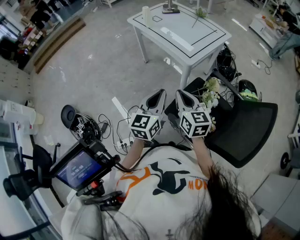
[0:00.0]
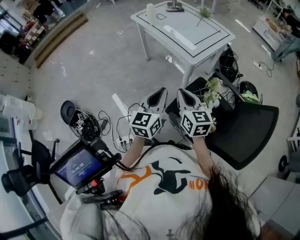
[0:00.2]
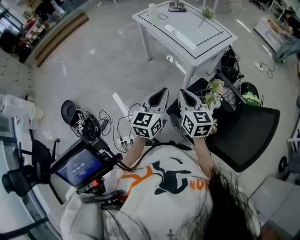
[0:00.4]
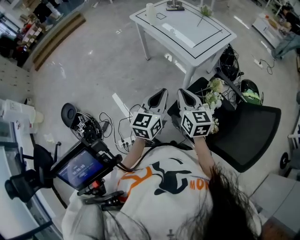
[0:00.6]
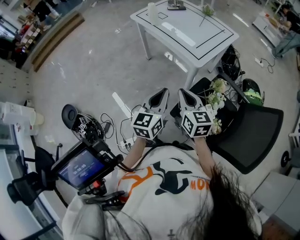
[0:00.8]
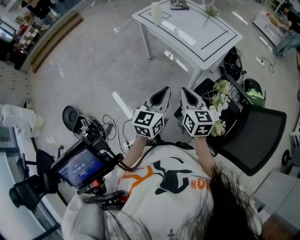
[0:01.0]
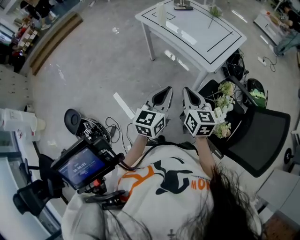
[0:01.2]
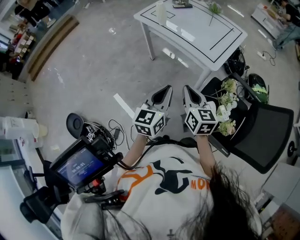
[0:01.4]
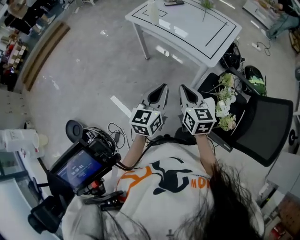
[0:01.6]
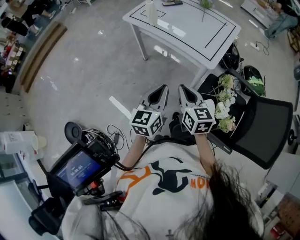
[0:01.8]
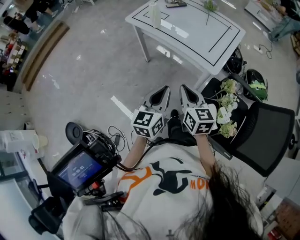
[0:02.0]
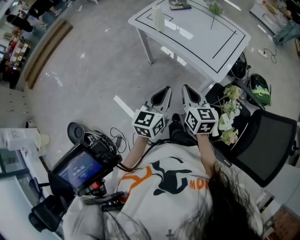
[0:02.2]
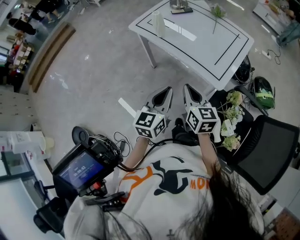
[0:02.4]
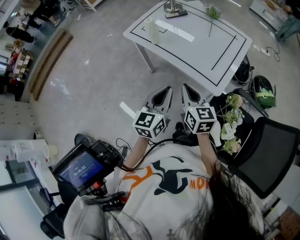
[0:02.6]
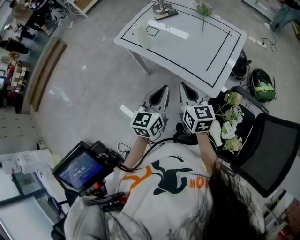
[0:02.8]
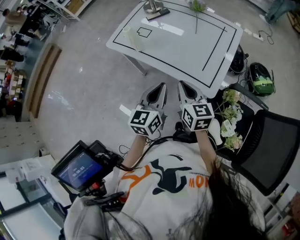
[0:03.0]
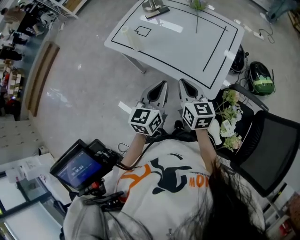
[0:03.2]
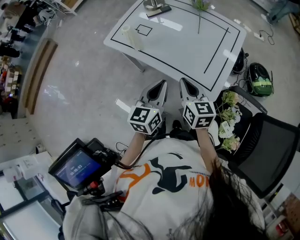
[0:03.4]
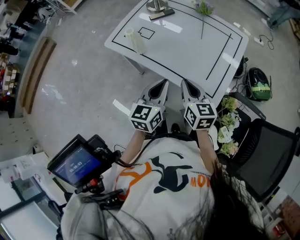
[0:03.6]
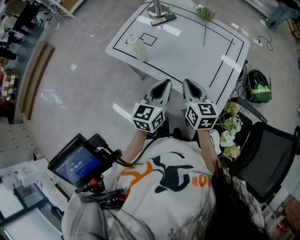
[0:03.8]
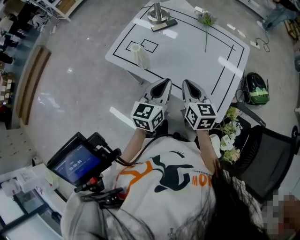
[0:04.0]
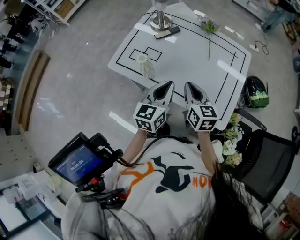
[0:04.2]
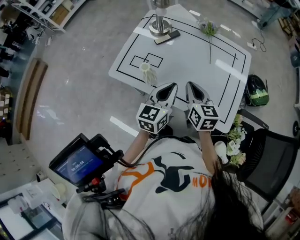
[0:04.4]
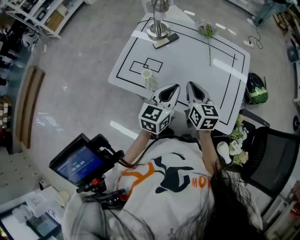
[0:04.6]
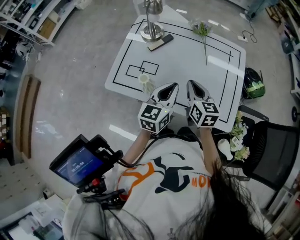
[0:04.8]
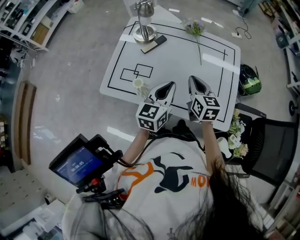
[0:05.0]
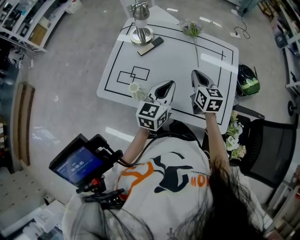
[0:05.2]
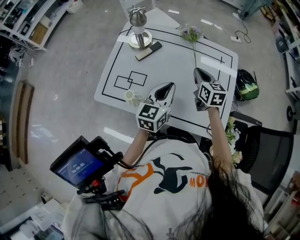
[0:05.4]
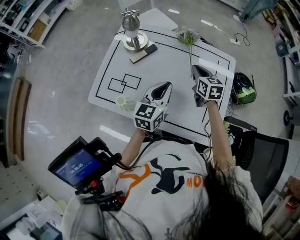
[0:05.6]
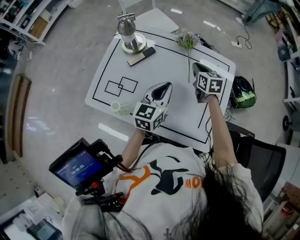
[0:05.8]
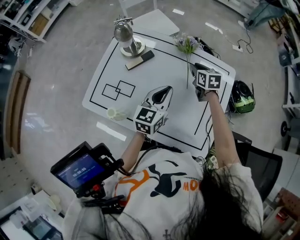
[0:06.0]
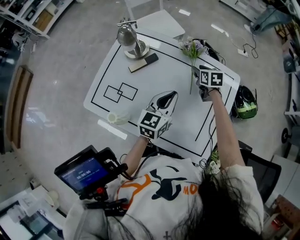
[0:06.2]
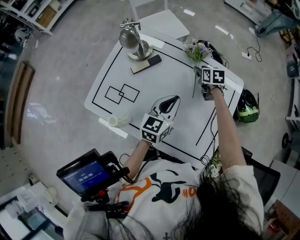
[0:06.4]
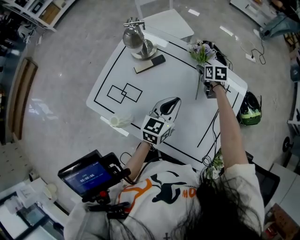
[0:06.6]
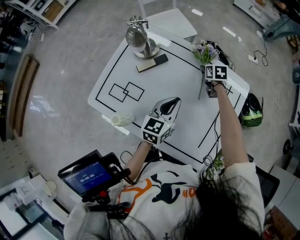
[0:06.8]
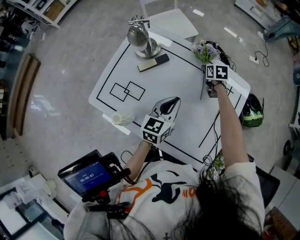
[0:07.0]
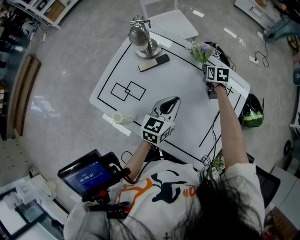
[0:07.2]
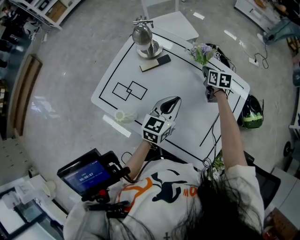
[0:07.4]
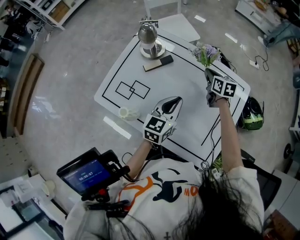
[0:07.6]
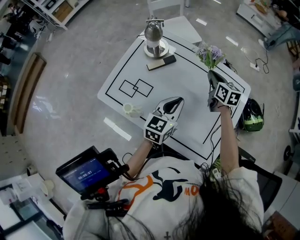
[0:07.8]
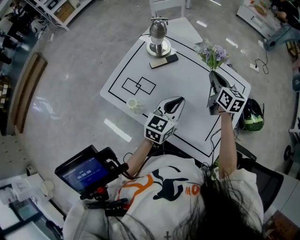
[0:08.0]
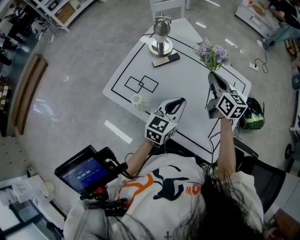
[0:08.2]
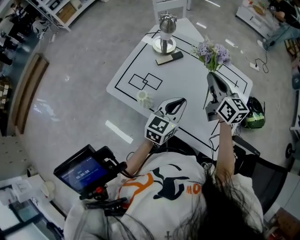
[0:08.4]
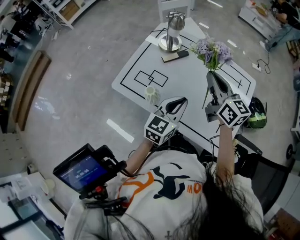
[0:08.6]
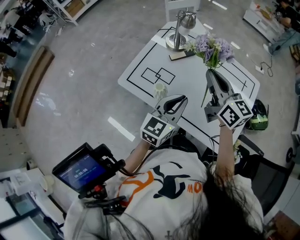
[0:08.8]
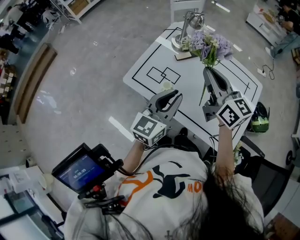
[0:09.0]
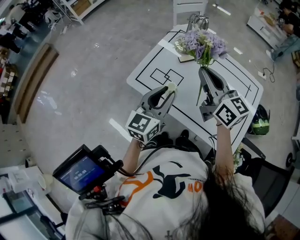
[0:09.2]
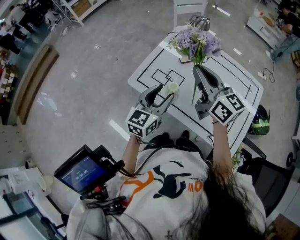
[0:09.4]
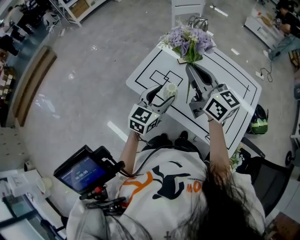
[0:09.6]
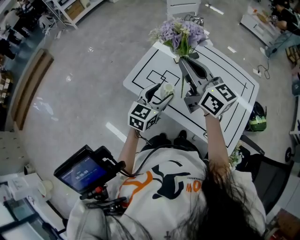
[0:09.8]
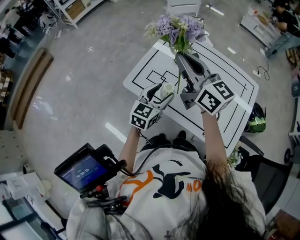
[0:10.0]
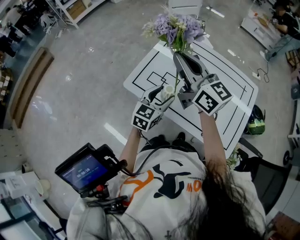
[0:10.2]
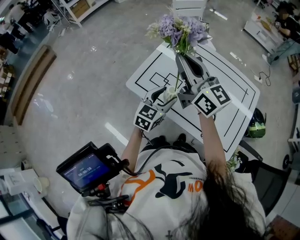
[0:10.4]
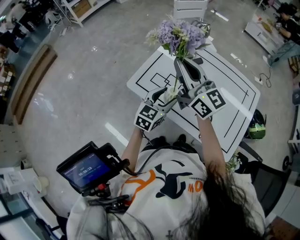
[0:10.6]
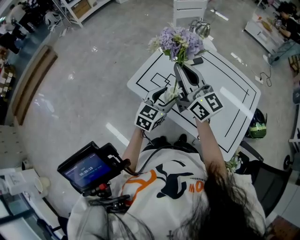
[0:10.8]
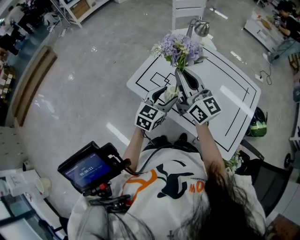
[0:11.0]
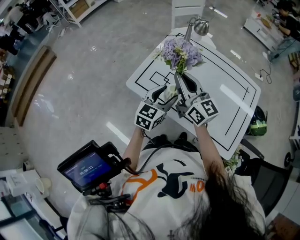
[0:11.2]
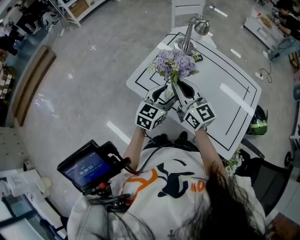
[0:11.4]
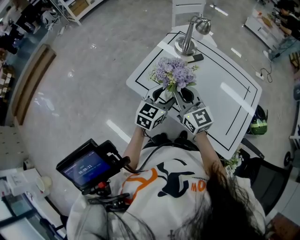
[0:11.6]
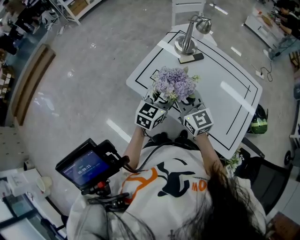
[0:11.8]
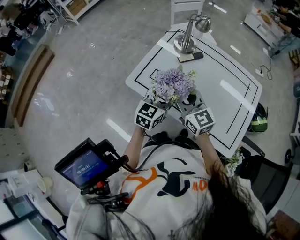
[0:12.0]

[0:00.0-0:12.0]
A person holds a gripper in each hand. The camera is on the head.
0:00.0 to 0:01.6: Both grippers travel together to the left and forward, about 20 cm.
0:01.6 to 0:03.0: Both grippers travel together forward, about 25 cm.
0:03.0 to 0:04.4: Both grippers move forward, approximately 20 cm.
0:04.4 to 0:06.0: The right gripper shifts roughly 30 cm forward, and opens, while the left gripper travels forward and to the right by roughly 20 cm.
0:06.0 to 0:07.6: The right gripper opens, then closes once more.
0:07.6 to 0:09.0: The left gripper travels to the left, backward and upward by about 20 cm, while the right gripper moves upward, backward and to the left, roughly 40 cm, and tilts its fingers approximately 40 degrees upward.
0:09.0 to 0:10.4: The left gripper is displaced downward by about 10 cm, and opens its fingers, while the right gripper is displaced to the left and upward by approximately 15 cm.
0:10.4 to 0:12.0: The right gripper heads downward and backward, covering roughly 15 cm, turns by some 30 degrees, and opens up.

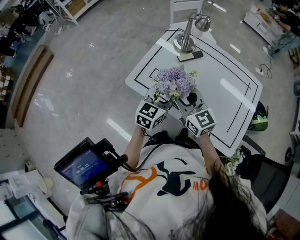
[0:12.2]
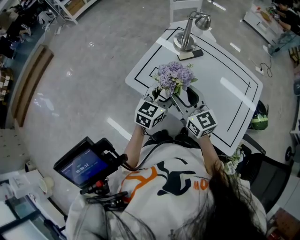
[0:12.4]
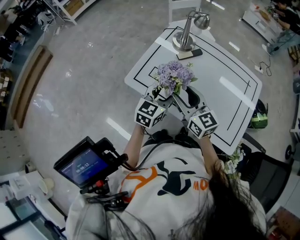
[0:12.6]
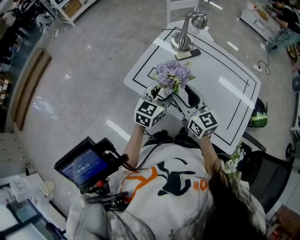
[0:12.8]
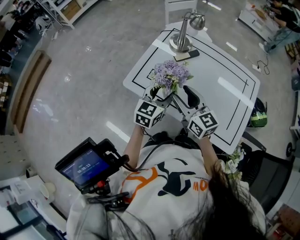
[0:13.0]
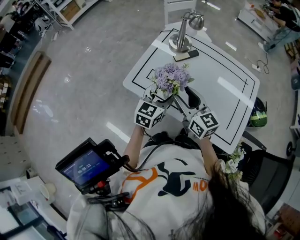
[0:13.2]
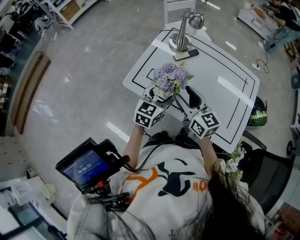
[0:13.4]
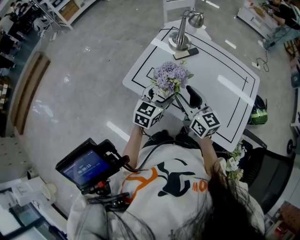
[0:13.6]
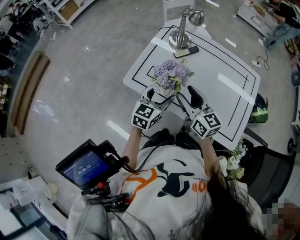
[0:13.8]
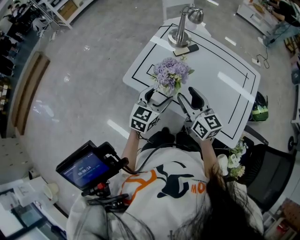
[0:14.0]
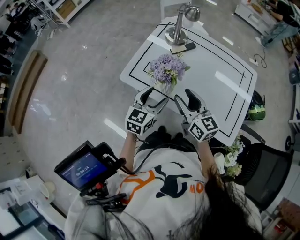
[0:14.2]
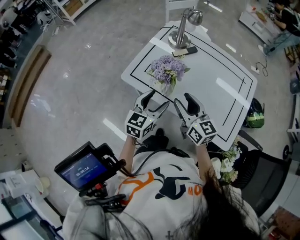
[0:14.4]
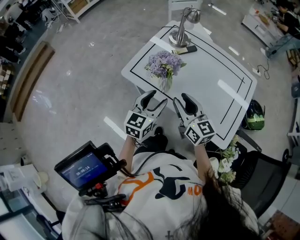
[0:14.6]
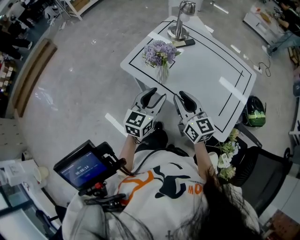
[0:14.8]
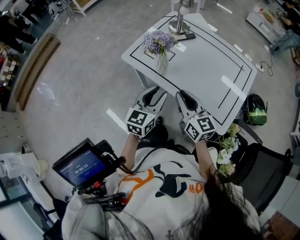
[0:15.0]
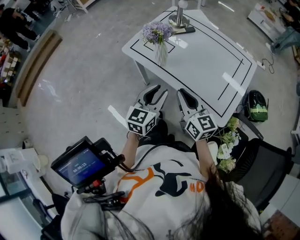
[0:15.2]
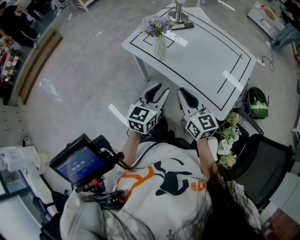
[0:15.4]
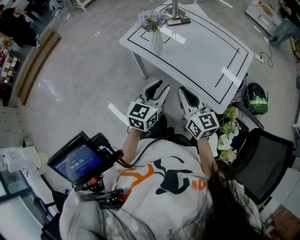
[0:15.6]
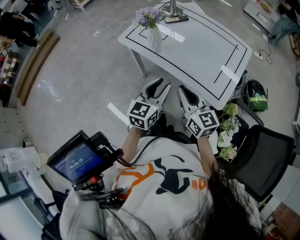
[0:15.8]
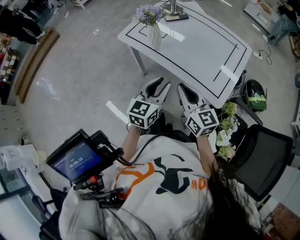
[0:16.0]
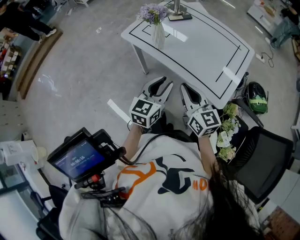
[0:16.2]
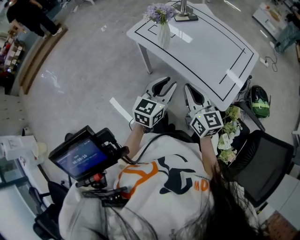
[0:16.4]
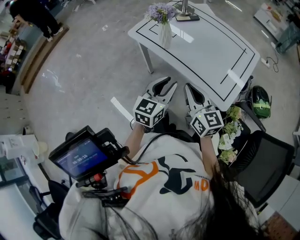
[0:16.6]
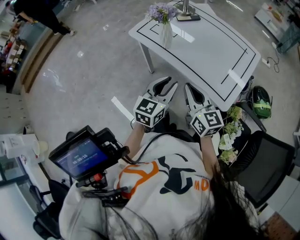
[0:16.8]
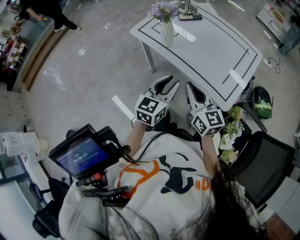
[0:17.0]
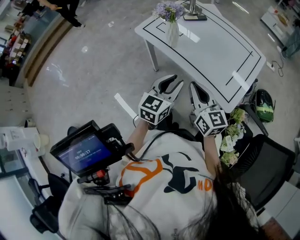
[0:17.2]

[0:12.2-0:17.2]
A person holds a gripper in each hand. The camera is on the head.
0:12.2 to 0:13.8: The right gripper shifts by some 5 cm.
0:13.8 to 0:15.6: The grippers both shift backward by some 25 cm. The right gripper closes up. Meanwhile the left gripper closes its fingers.
0:15.6 to 0:17.2: There are only small adjustments of the grippers.

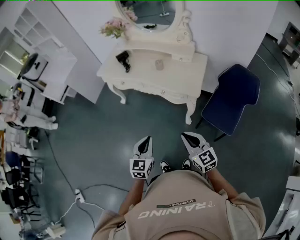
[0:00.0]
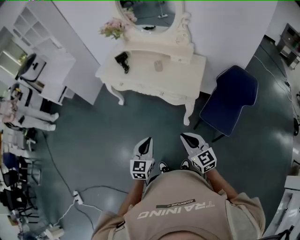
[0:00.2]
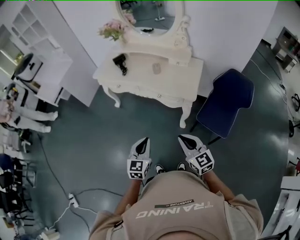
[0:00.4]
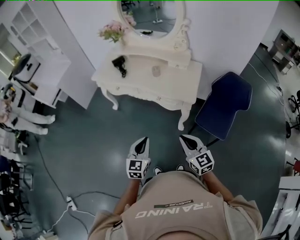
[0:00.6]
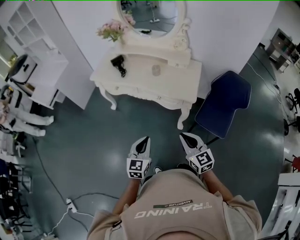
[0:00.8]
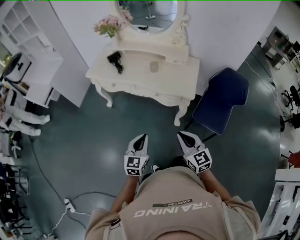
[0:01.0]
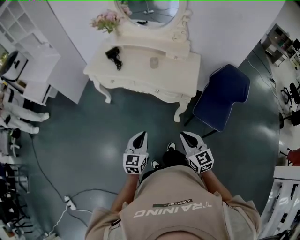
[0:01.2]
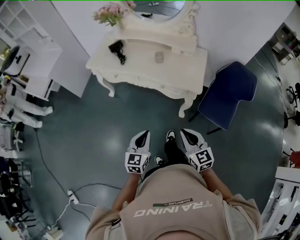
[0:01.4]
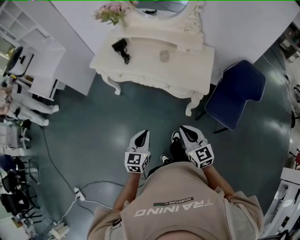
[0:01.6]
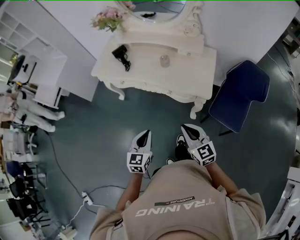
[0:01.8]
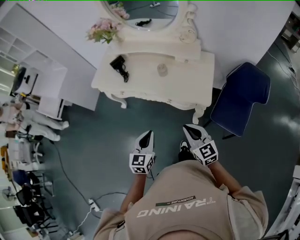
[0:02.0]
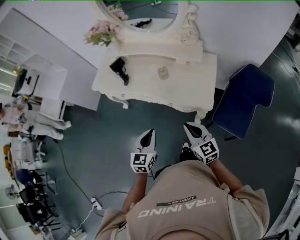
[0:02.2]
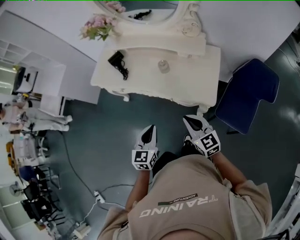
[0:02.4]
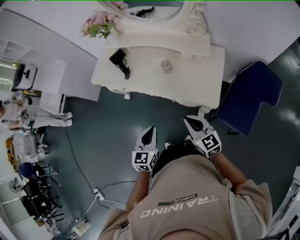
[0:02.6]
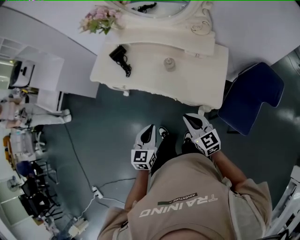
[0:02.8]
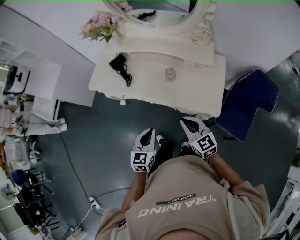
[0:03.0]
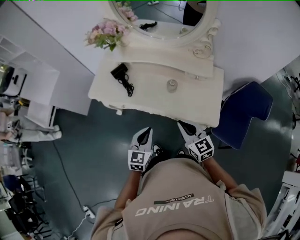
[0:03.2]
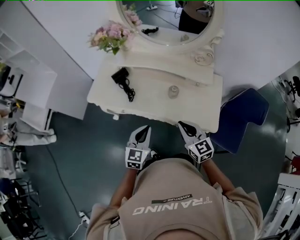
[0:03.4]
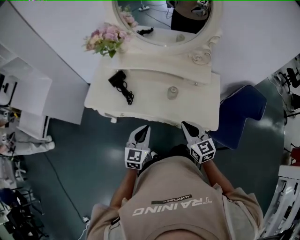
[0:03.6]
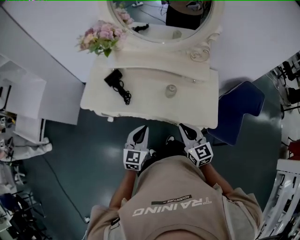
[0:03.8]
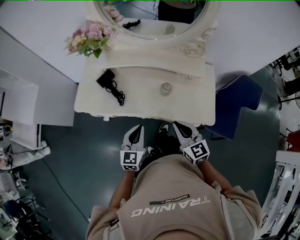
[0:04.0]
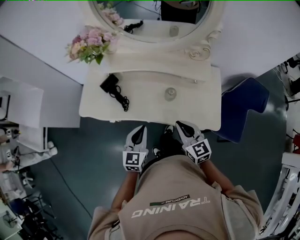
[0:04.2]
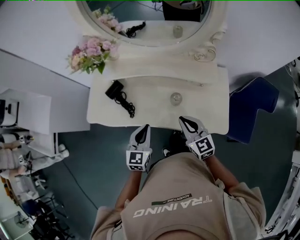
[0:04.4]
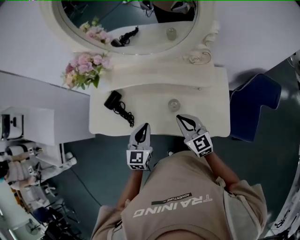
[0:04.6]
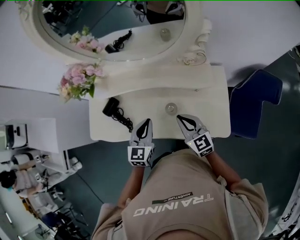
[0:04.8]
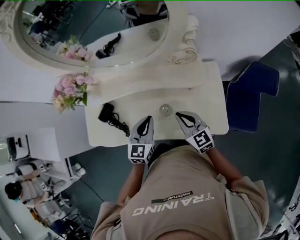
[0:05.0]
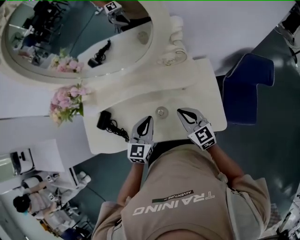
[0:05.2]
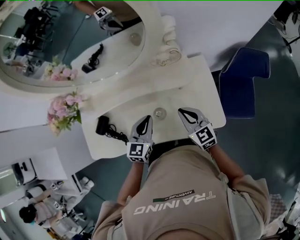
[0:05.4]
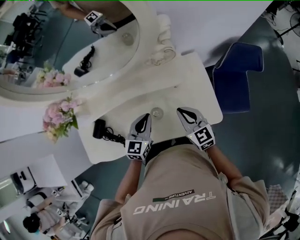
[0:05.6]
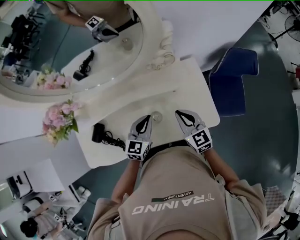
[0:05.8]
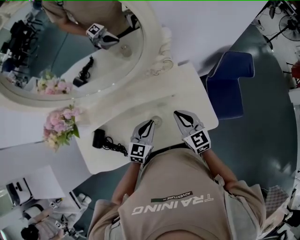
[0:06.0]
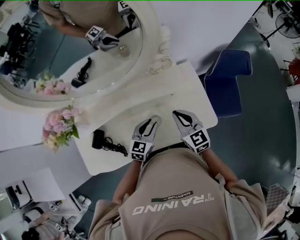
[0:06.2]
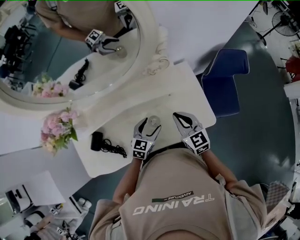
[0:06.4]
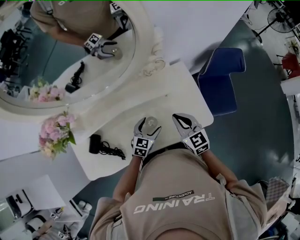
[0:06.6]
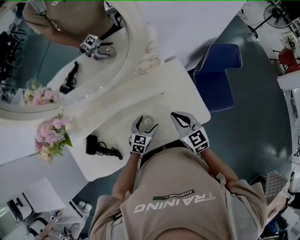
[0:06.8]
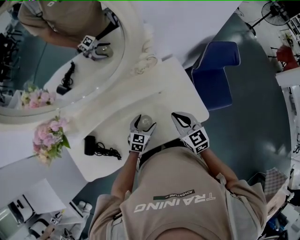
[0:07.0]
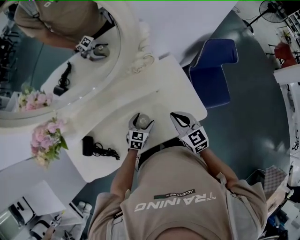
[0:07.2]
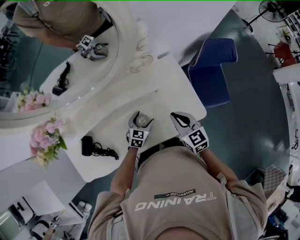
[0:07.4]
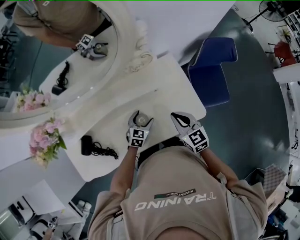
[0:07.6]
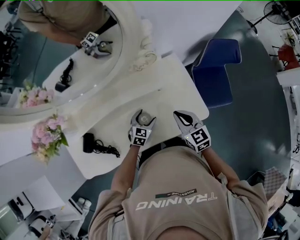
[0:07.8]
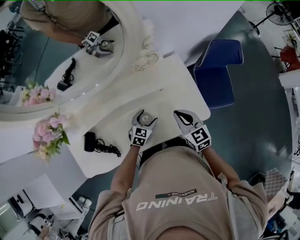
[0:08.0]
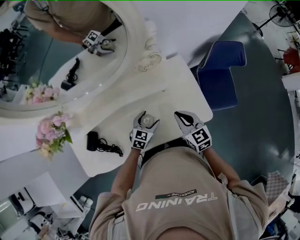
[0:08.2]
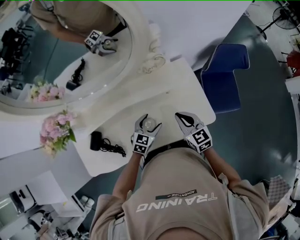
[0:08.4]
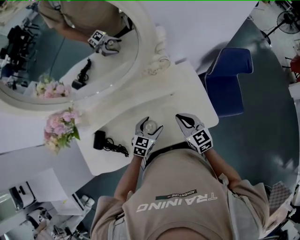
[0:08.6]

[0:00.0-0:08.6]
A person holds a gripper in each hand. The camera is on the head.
0:00.0 to 0:01.4: The left gripper heads to the left and forward, covering roughly 5 cm; the right gripper shifts some 5 cm to the left.
0:01.4 to 0:02.8: The two grippers go about 20 cm forward.
0:02.8 to 0:04.4: Both grippers move forward, about 20 cm.
0:04.4 to 0:05.8: The left gripper ends up some 20 cm from where it was, and rotates some 30 degrees, while the right gripper ends up about 15 cm from where it was, and turns by about 20 degrees.
0:05.8 to 0:07.2: The left gripper moves downward, about 15 cm, turns by approximately 20 degrees, and opens.
0:07.2 to 0:08.6: The left gripper moves upward, roughly 5 cm.
